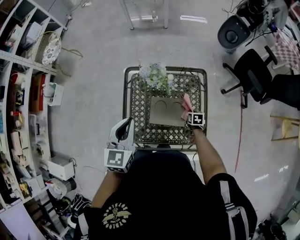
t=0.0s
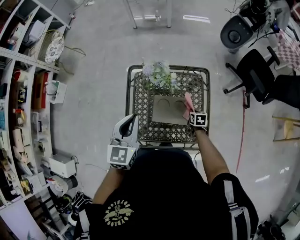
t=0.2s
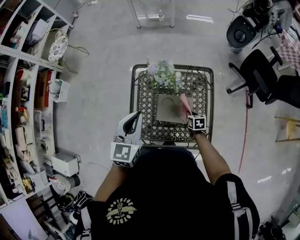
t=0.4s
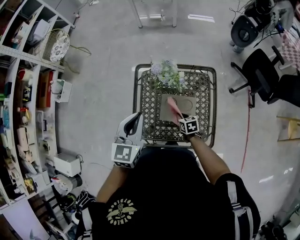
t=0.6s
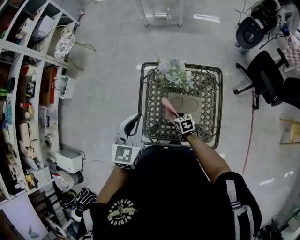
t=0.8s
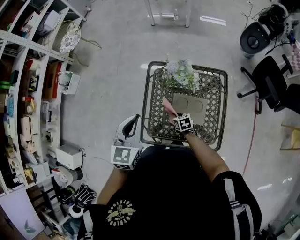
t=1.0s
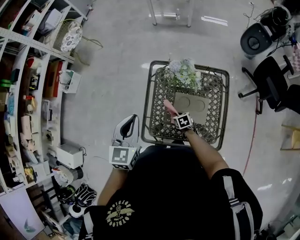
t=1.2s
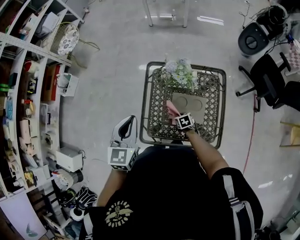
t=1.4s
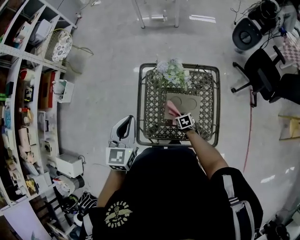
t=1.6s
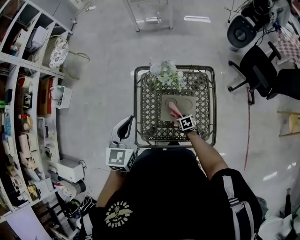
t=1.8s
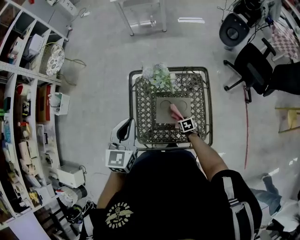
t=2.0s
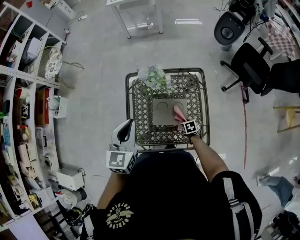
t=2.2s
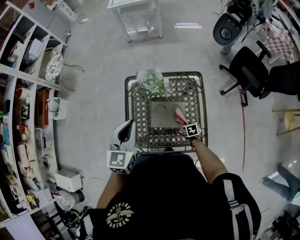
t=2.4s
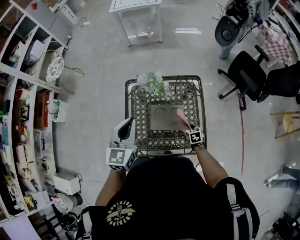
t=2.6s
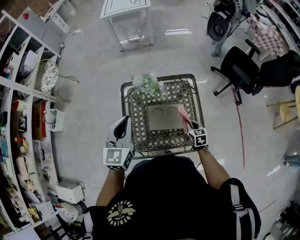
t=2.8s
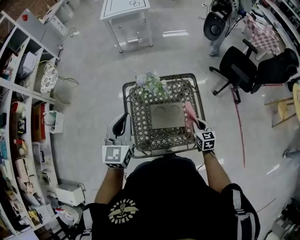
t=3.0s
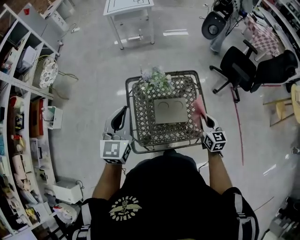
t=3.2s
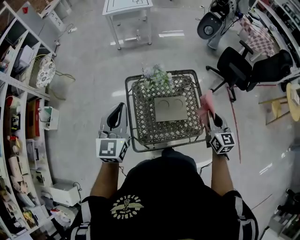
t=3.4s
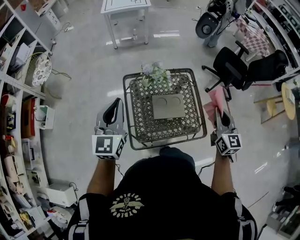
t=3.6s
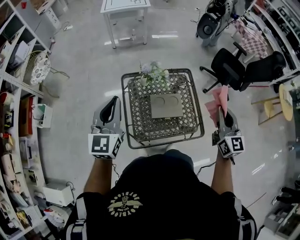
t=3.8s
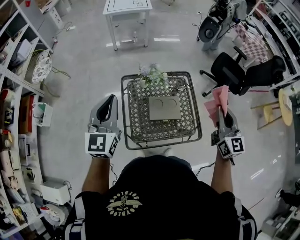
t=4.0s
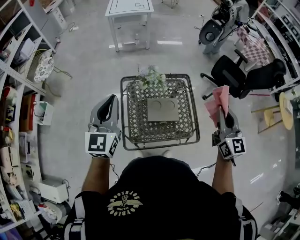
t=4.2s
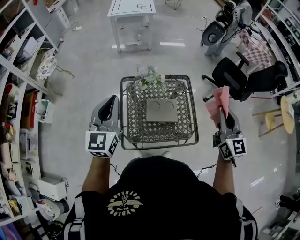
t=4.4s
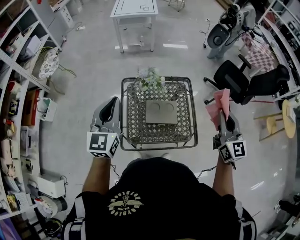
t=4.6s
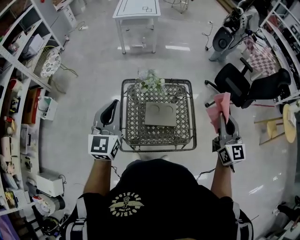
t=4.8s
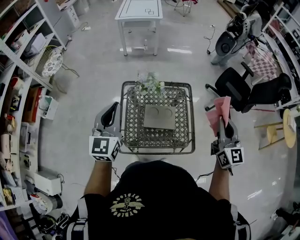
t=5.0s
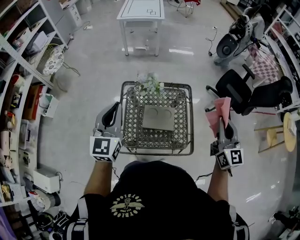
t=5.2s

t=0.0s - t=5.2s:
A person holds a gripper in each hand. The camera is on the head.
t=0.0s - t=1.8s: The right gripper moves to the left, some 15 cm. The left gripper is displaced to the left by about 5 cm.
t=1.8s - t=3.4s: The right gripper moves upward, some 40 cm, and tilts its fingers some 50 degrees upward; the left gripper travels upward and to the left by about 10 cm.
t=3.4s - t=5.2s: The right gripper is displaced upward and to the right by about 15 cm; the left gripper is displaced to the right by some 10 cm.

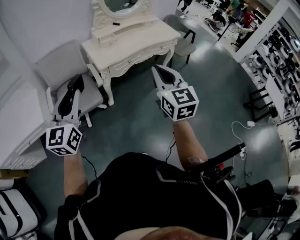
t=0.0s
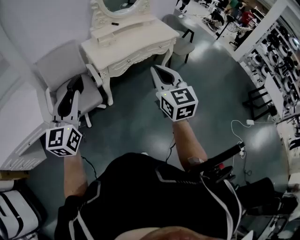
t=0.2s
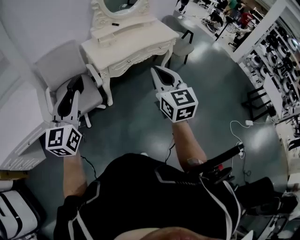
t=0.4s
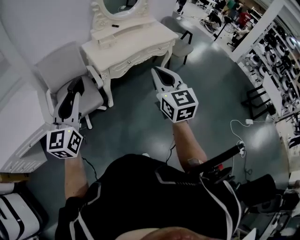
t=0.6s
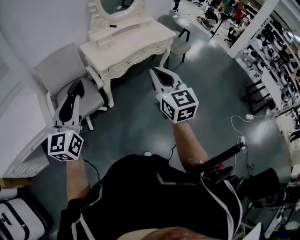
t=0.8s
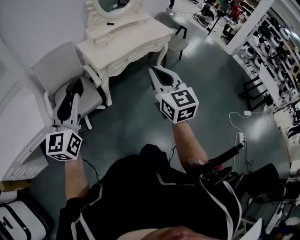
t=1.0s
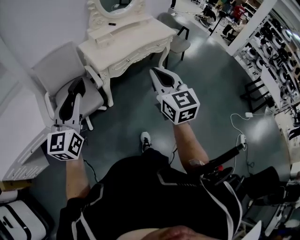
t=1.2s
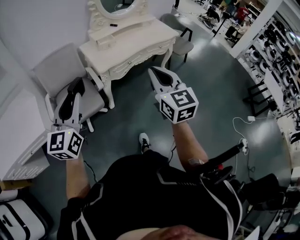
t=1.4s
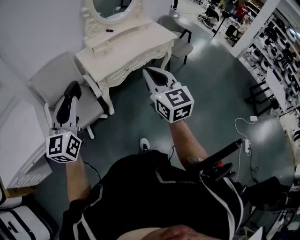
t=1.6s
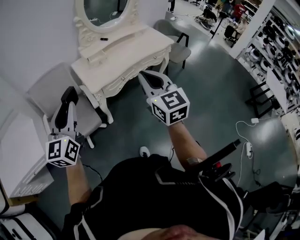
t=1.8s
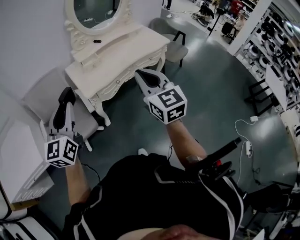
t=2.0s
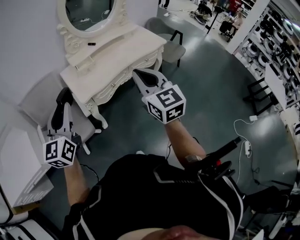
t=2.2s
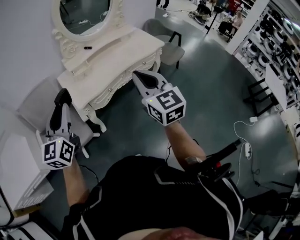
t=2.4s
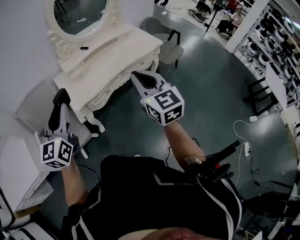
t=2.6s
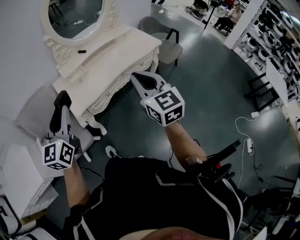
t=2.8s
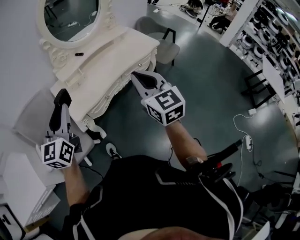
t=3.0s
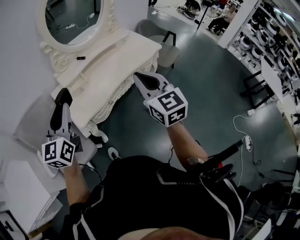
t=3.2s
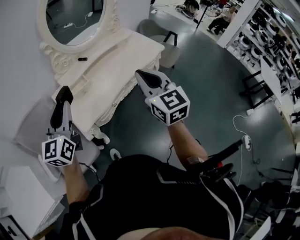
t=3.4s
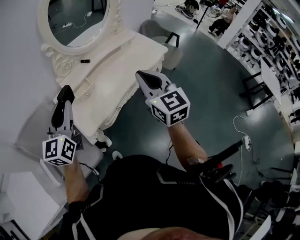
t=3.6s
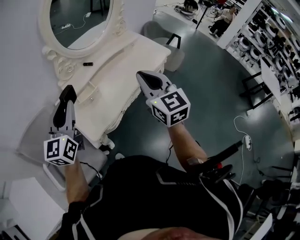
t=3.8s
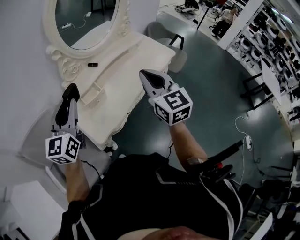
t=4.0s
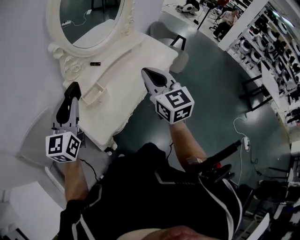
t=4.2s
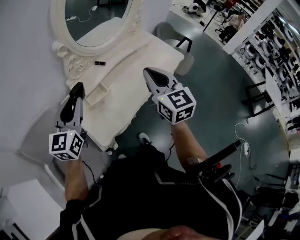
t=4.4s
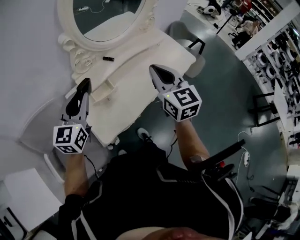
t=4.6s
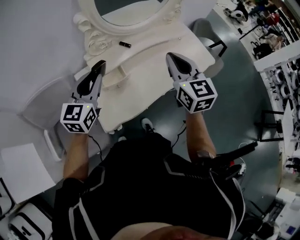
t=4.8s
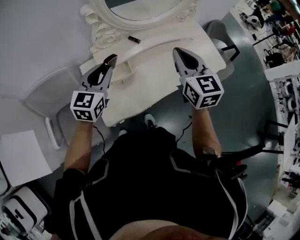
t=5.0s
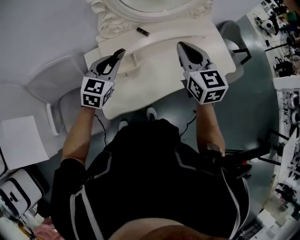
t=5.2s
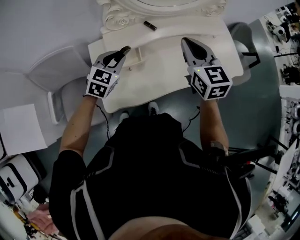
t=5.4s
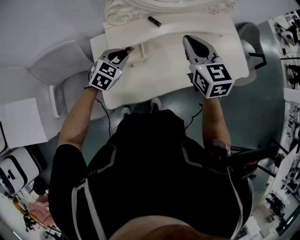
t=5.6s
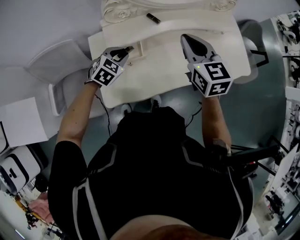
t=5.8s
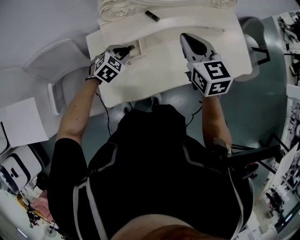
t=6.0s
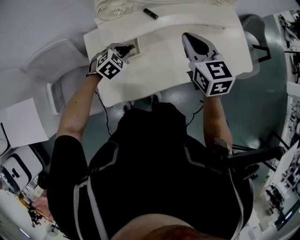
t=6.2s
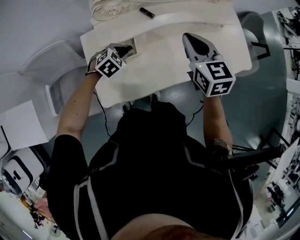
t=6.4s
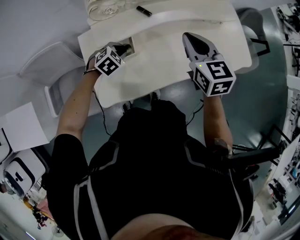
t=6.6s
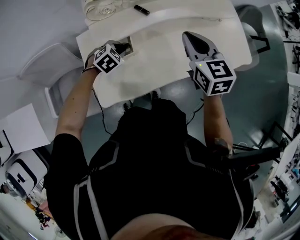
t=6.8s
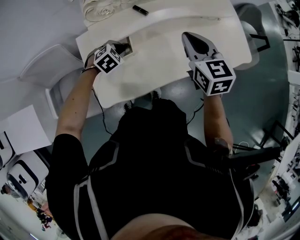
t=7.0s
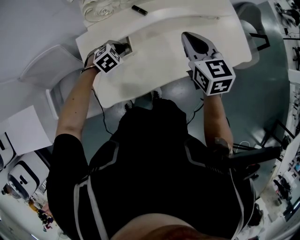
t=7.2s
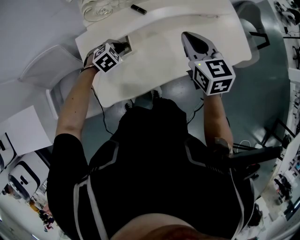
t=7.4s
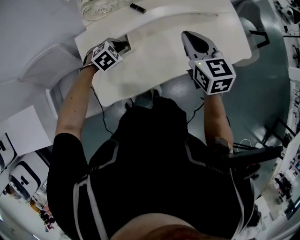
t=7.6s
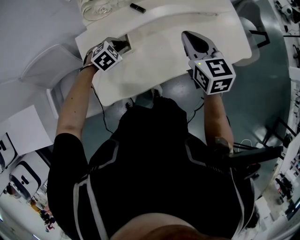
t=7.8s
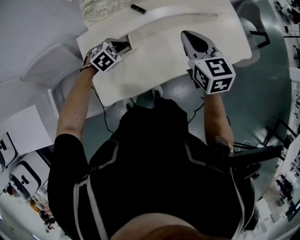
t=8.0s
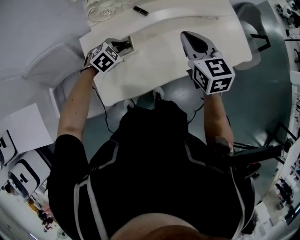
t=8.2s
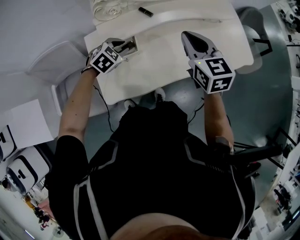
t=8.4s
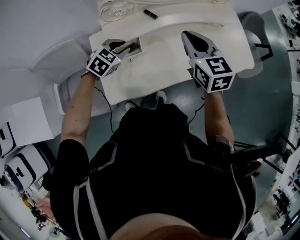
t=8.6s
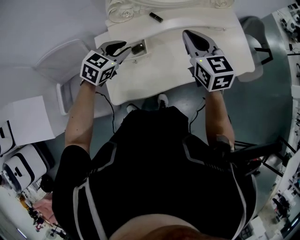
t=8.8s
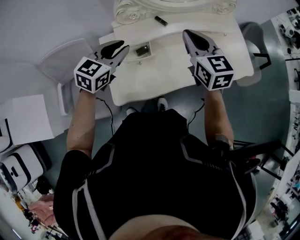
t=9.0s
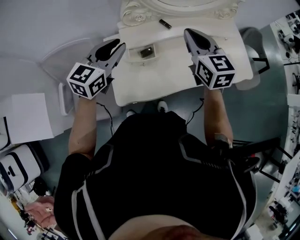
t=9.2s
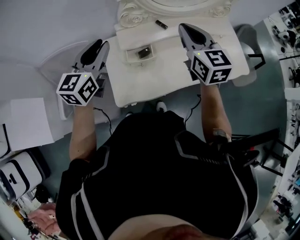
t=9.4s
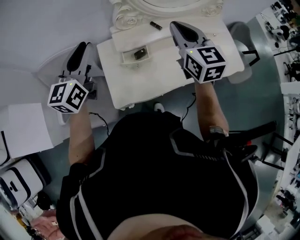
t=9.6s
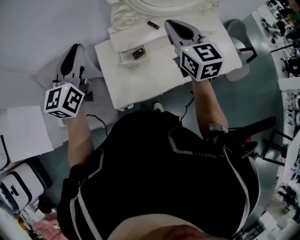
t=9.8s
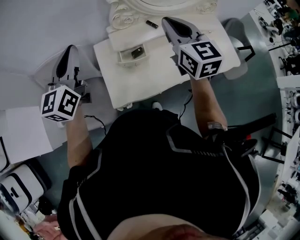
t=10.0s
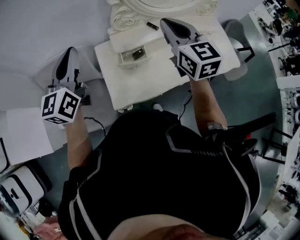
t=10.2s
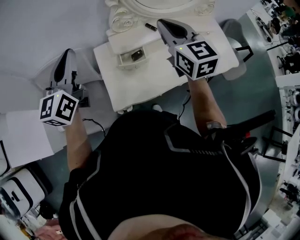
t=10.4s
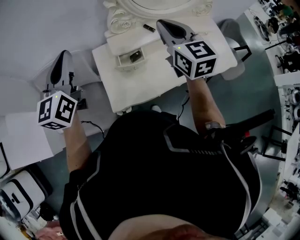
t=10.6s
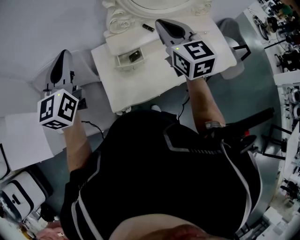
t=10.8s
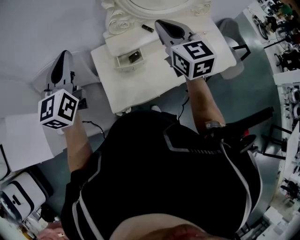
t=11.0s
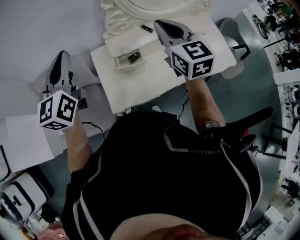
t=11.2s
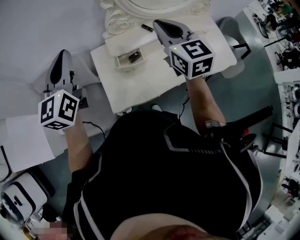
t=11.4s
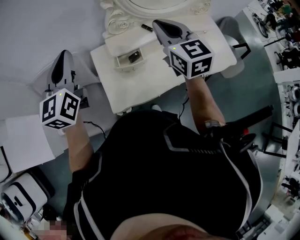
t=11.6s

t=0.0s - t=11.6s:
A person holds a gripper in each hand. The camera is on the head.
t=1.4s - t=2.8s: The two grippers go some 30 cm forward and to the right.
t=2.8s - t=4.4s: Both grippers move forward and to the left, roughly 35 cm.
t=4.4s - t=5.8s: The right gripper goes roughly 25 cm forward and downward, and changes its angle by approximately 30 degrees, while the left gripper is displaced downward and forward by about 30 cm, and points its fingers roughly 50 degrees further downward.
t=5.8s - t=7.2s: The left gripper shifts about 10 cm downward, and changes its angle by some 20 degrees, while the right gripper changes place by some 5 cm.
t=7.2s - t=8.8s: The left gripper goes roughly 15 cm upward, and tilts its fingers approximately 30 degrees upward. The right gripper is displaced upward by some 5 cm.
t=8.8s - t=10.2s: The right gripper goes roughly 15 cm upward and to the left, while the left gripper heads upward and to the left, covering some 30 cm, angles its fingers upward, by about 40 degrees, and closes its fingers.
t=10.2s - t=11.6s: The grippers move only a little.

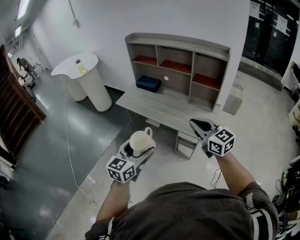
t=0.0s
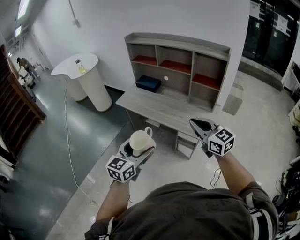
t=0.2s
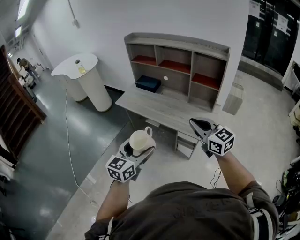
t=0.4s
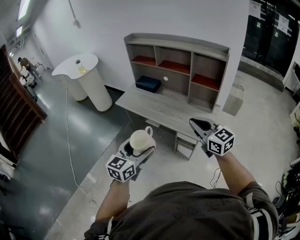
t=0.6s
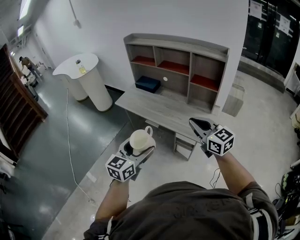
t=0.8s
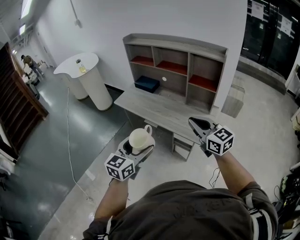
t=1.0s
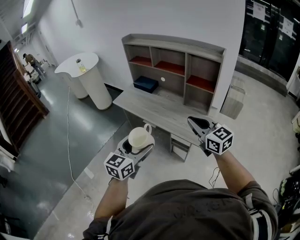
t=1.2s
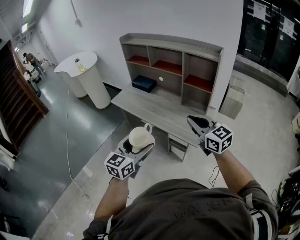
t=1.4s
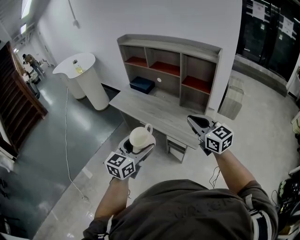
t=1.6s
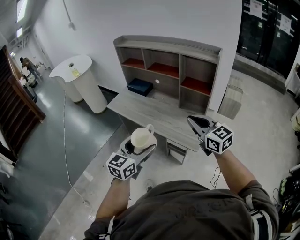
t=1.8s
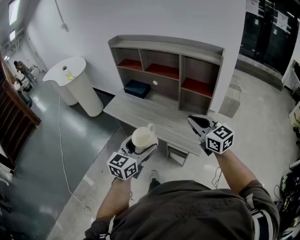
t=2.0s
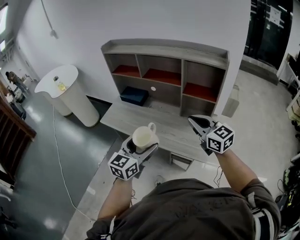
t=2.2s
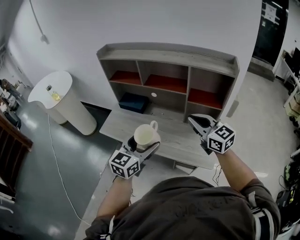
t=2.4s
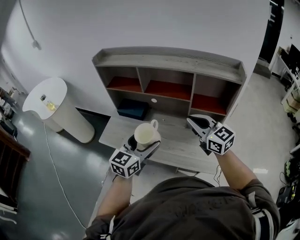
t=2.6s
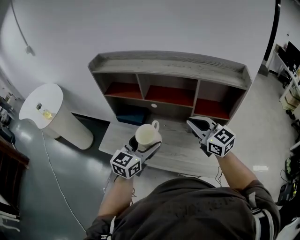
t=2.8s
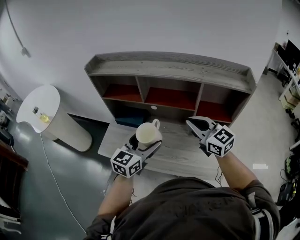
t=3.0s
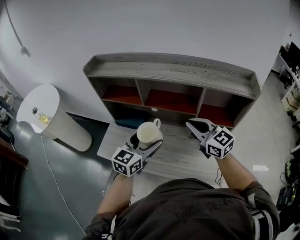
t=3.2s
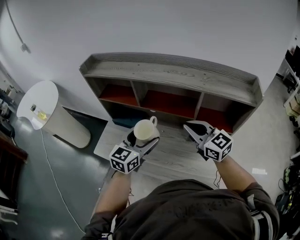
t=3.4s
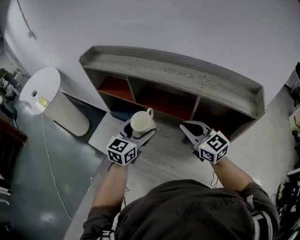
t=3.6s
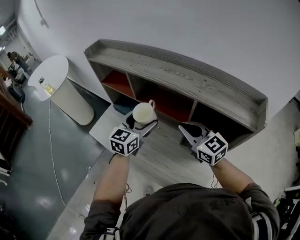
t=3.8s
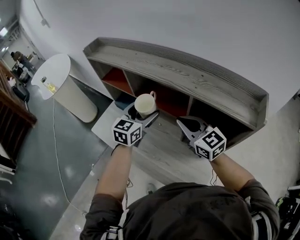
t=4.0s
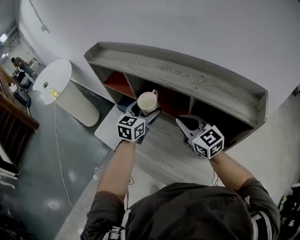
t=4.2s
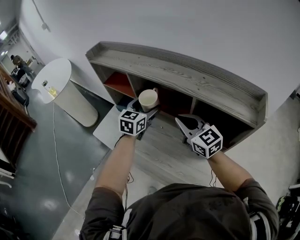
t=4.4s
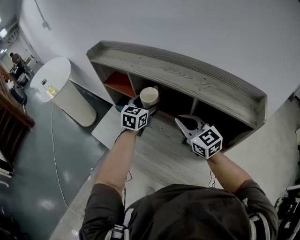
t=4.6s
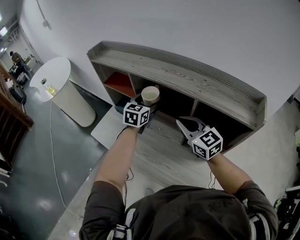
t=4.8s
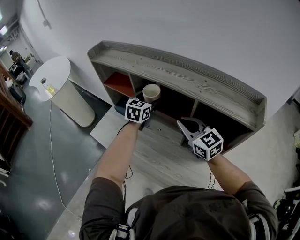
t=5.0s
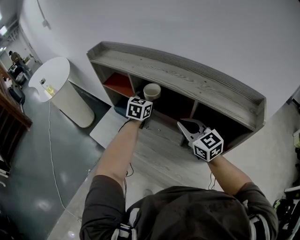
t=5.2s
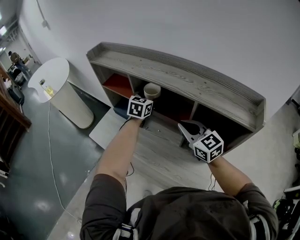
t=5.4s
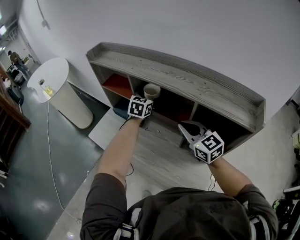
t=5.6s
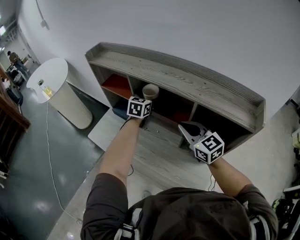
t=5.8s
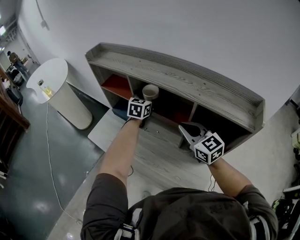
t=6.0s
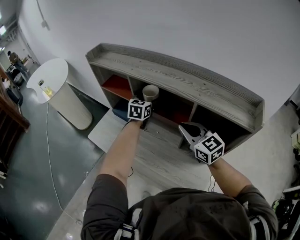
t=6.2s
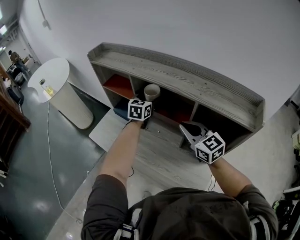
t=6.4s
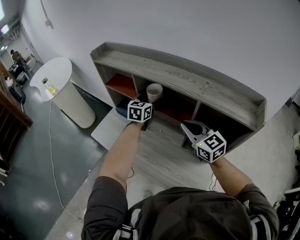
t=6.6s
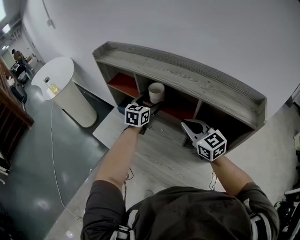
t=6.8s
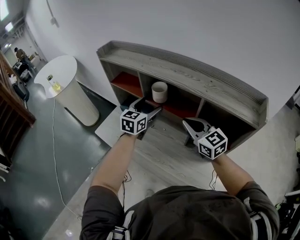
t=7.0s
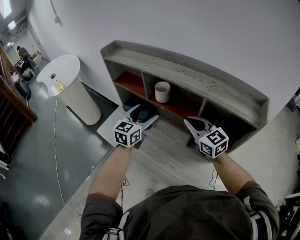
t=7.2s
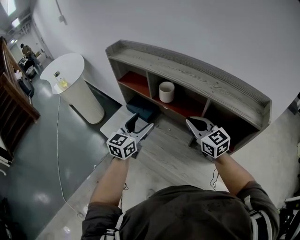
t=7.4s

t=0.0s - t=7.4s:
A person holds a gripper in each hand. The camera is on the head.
t=0.0s - t=1.4s: The two grippers go roughly 10 cm to the right.
t=1.4s - t=3.0s: Both grippers are carried forward, roughly 40 cm. The left gripper changes its angle by approximately 20 degrees.
t=3.0s - t=4.4s: The left gripper goes some 20 cm forward and to the right, and turns by about 20 degrees. Meanwhile the right gripper shifts roughly 10 cm forward and to the right.
t=4.4s - t=6.0s: The left gripper heads forward, covering approximately 10 cm.
t=6.0s - t=7.4s: The left gripper goes some 25 cm backward and to the left.
